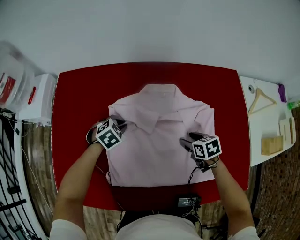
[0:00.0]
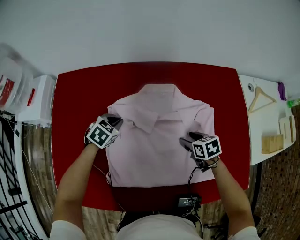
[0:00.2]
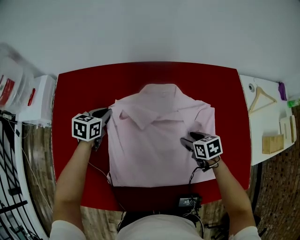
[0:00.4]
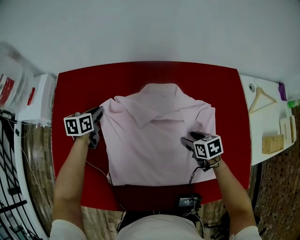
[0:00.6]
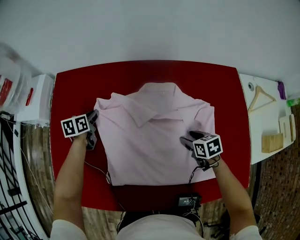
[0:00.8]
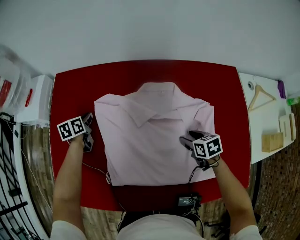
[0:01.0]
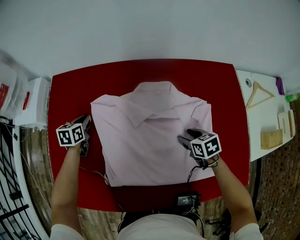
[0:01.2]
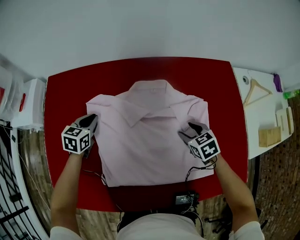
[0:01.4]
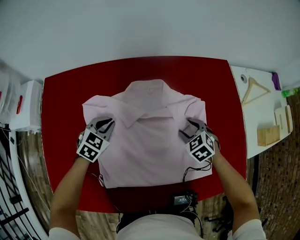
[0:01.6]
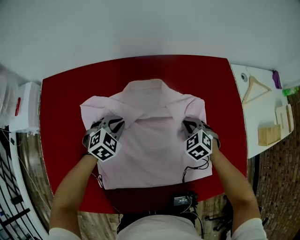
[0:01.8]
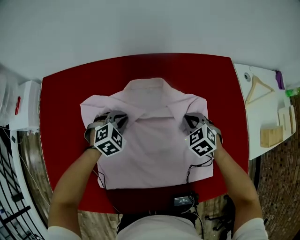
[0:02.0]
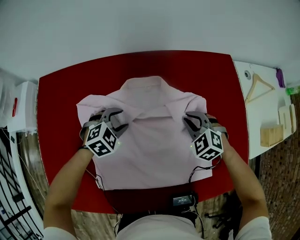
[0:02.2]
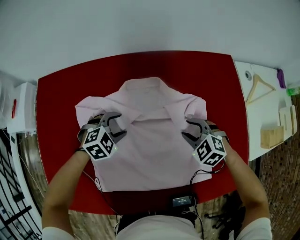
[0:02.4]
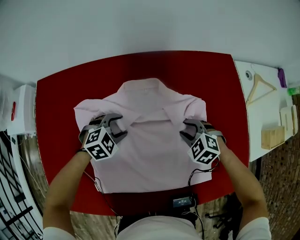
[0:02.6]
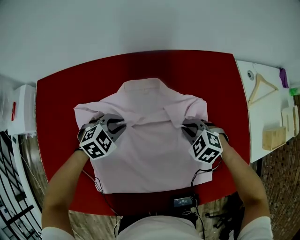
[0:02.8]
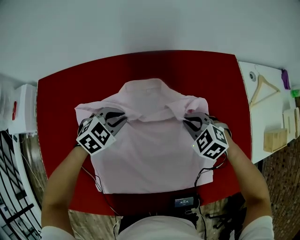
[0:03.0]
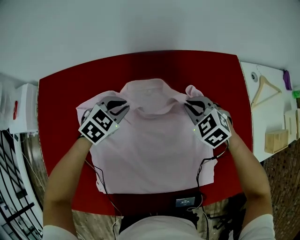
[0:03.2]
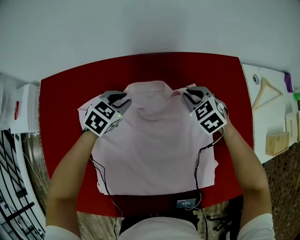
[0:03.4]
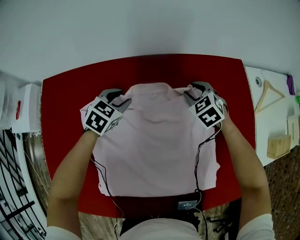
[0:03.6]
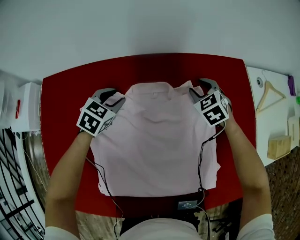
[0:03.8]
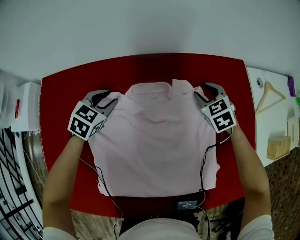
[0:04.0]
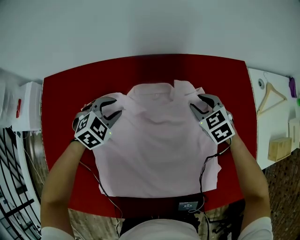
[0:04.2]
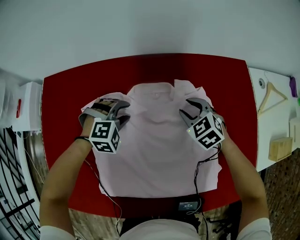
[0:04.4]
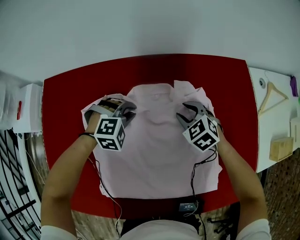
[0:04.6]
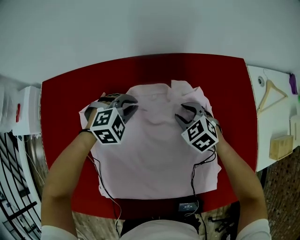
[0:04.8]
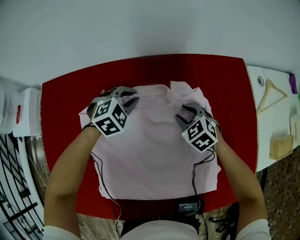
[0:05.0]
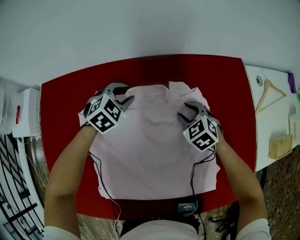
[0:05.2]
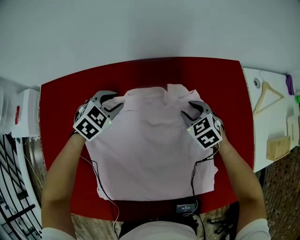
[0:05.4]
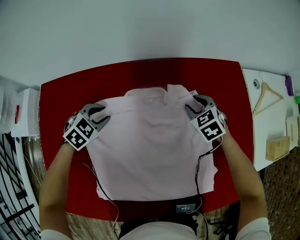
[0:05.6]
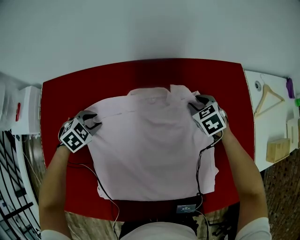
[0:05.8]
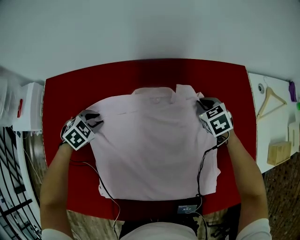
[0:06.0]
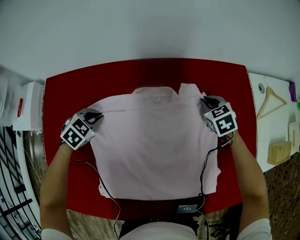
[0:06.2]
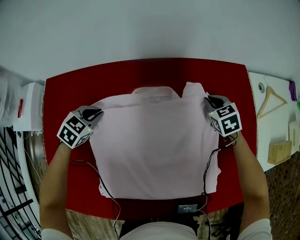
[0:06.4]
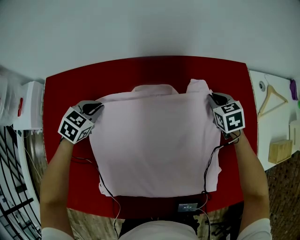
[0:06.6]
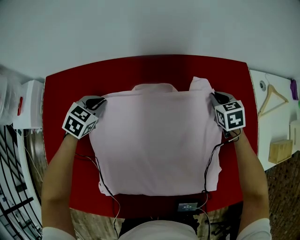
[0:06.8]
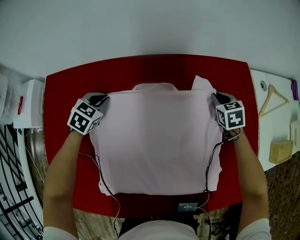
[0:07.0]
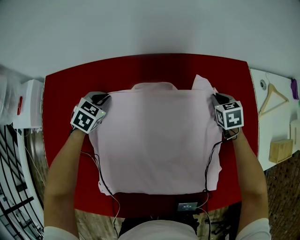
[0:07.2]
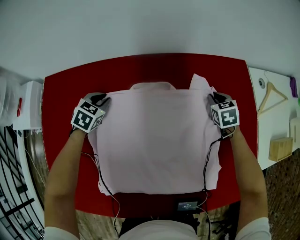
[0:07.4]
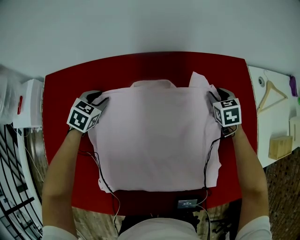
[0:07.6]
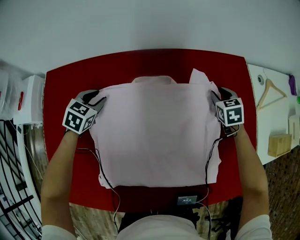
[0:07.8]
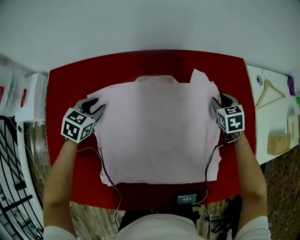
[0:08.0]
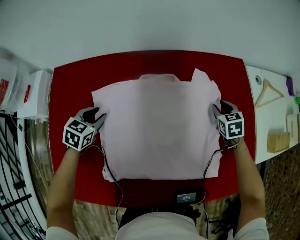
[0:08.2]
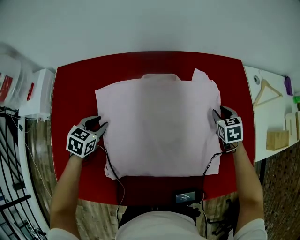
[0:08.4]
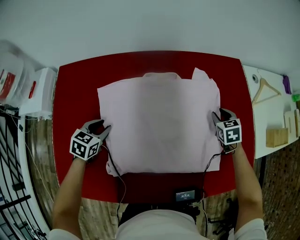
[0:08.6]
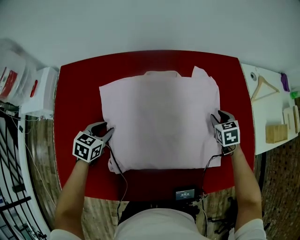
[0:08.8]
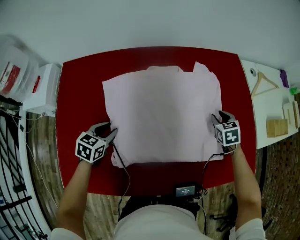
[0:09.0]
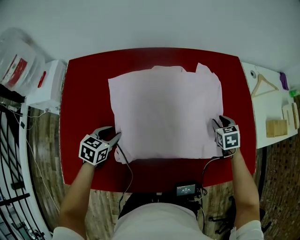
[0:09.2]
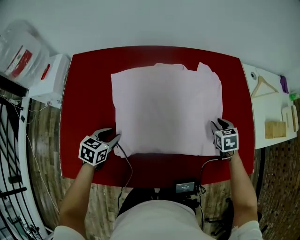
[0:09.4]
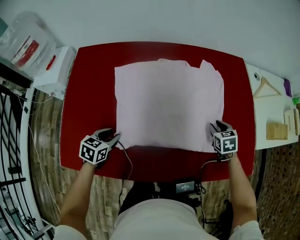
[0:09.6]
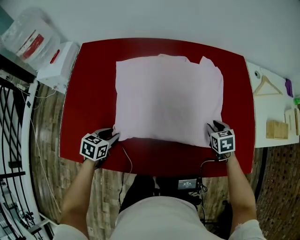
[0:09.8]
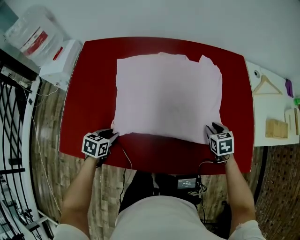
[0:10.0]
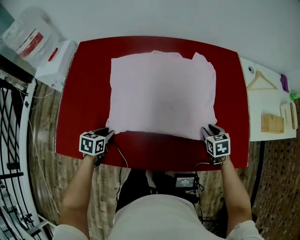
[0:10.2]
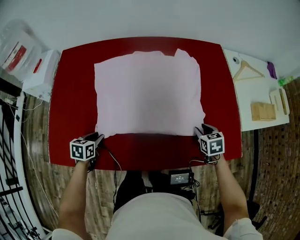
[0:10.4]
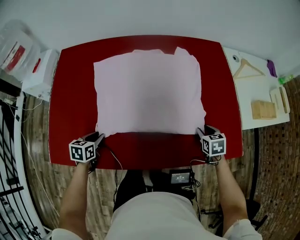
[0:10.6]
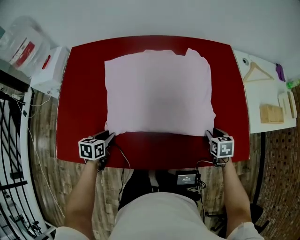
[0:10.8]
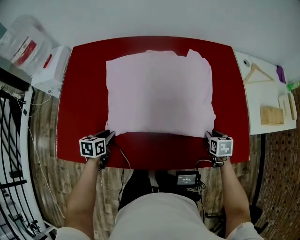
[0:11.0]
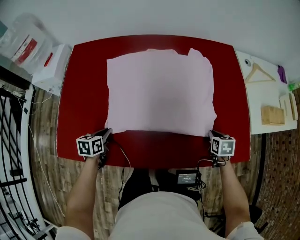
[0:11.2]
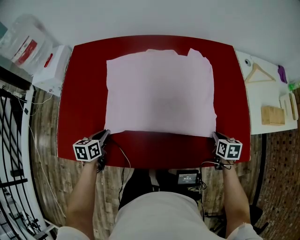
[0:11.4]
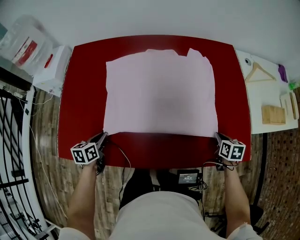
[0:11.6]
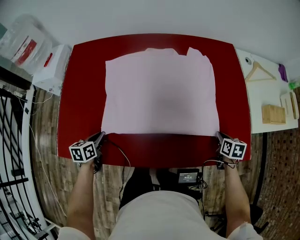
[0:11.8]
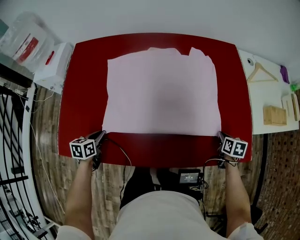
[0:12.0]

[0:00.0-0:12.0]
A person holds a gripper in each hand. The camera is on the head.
0:00.0 to 0:01.6: The right gripper changes its angle by about 40 degrees, while the left gripper travels to the left and back again, some 15 cm each way, and rotates some 20 degrees.
0:01.6 to 0:03.0: The left gripper travels to the right by approximately 5 cm, and opens, then closes again; the right gripper swings forward and backward, roughly 5 cm each way, with 2 reversals, and closes.
0:03.0 to 0:04.4: The left gripper goes forward and returns, about 10 cm each way, swivels roughly 40 degrees, and opens its fingers, while the right gripper is displaced forward by some 5 cm, and opens.
0:04.4 to 0:06.0: The right gripper goes approximately 10 cm to the right and forward, and closes. Meanwhile the left gripper goes roughly 15 cm to the left, turns by approximately 40 degrees, and closes, then opens again.
0:06.0 to 0:07.6: The right gripper heads to the right, covering about 5 cm, and opens. The left gripper goes some 5 cm forward, rotates roughly 20 degrees, and closes, then reopens.
0:07.6 to 0:09.0: The grippers both shift backward by about 20 cm.
0:09.0 to 0:10.4: Both grippers travel together backward, approximately 15 cm. The left gripper turns by approximately 20 degrees.
0:10.4 to 0:12.0: The left gripper closes its fingers. The right gripper moves to the right, about 5 cm, swivels about 20 degrees, and closes up.

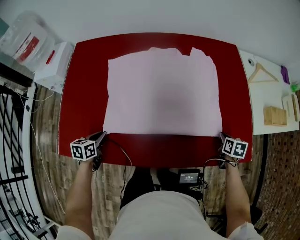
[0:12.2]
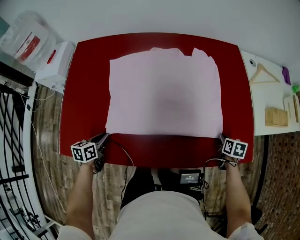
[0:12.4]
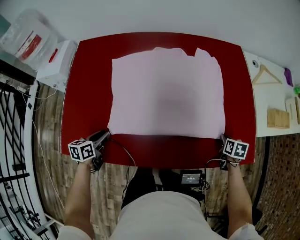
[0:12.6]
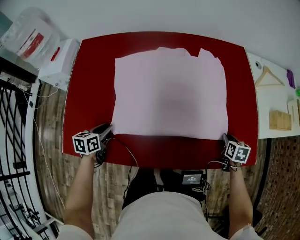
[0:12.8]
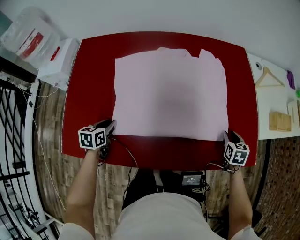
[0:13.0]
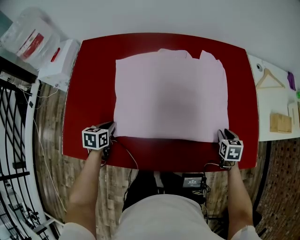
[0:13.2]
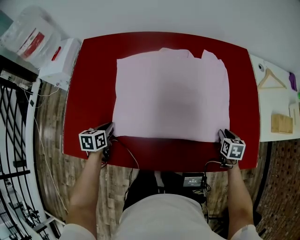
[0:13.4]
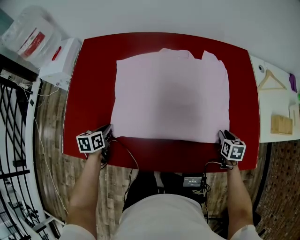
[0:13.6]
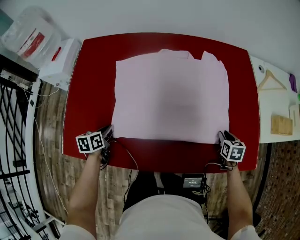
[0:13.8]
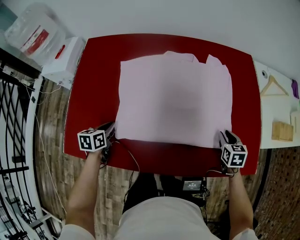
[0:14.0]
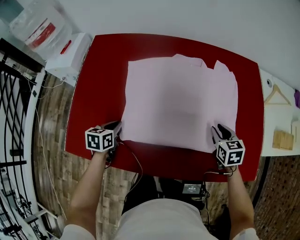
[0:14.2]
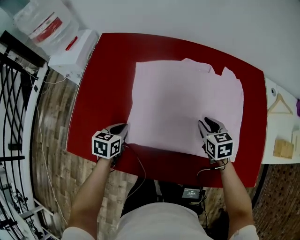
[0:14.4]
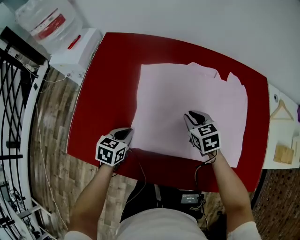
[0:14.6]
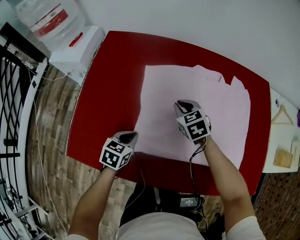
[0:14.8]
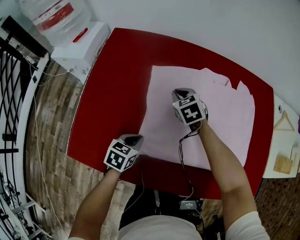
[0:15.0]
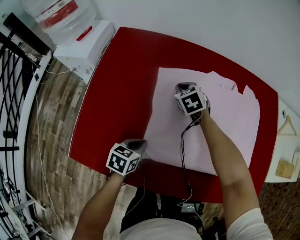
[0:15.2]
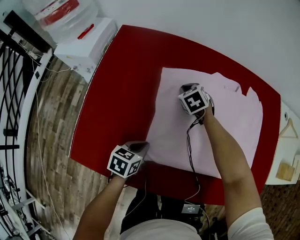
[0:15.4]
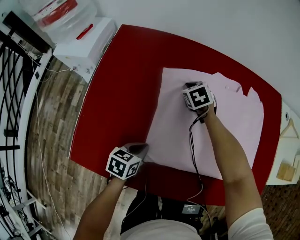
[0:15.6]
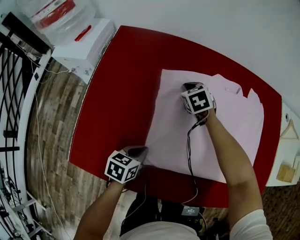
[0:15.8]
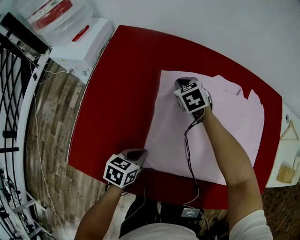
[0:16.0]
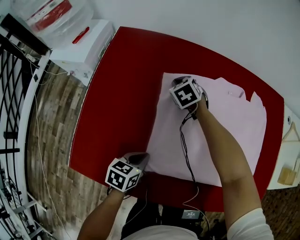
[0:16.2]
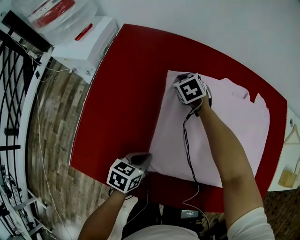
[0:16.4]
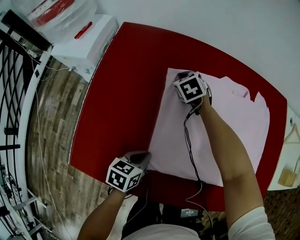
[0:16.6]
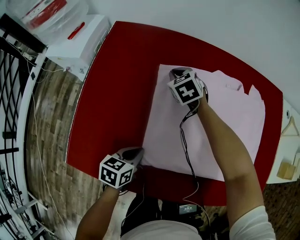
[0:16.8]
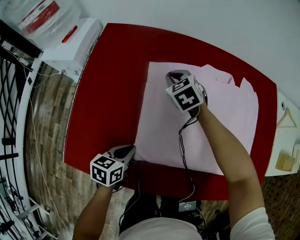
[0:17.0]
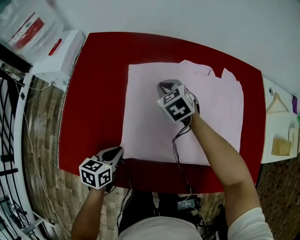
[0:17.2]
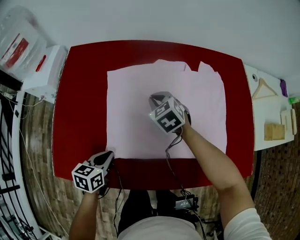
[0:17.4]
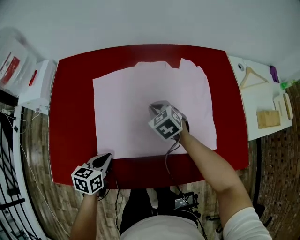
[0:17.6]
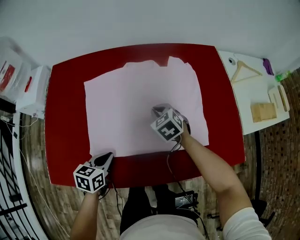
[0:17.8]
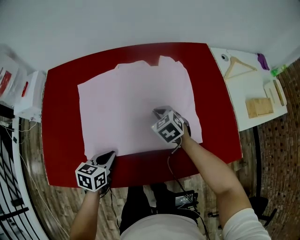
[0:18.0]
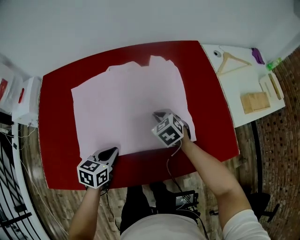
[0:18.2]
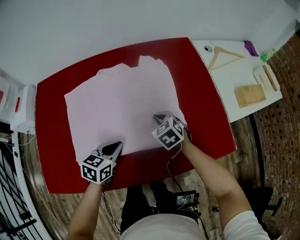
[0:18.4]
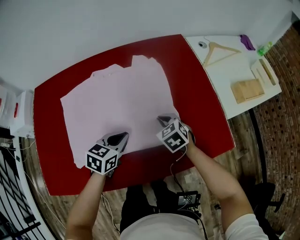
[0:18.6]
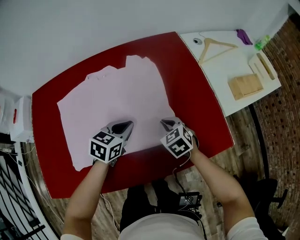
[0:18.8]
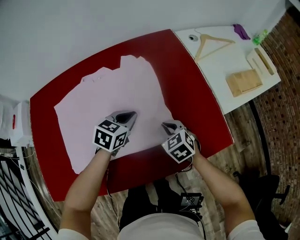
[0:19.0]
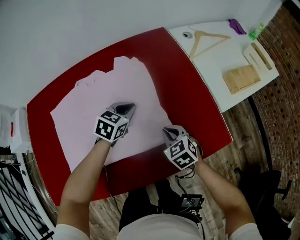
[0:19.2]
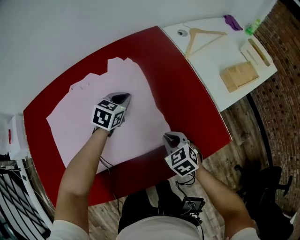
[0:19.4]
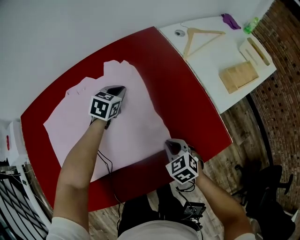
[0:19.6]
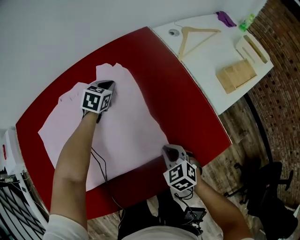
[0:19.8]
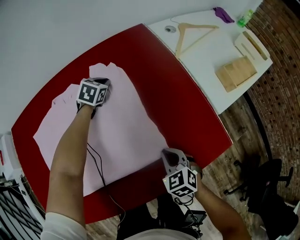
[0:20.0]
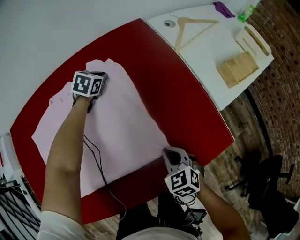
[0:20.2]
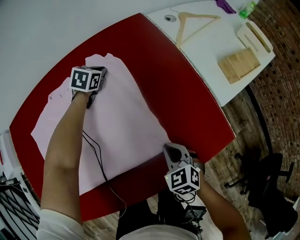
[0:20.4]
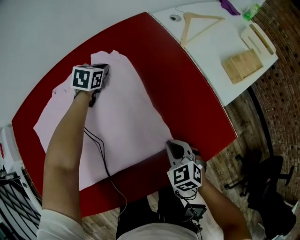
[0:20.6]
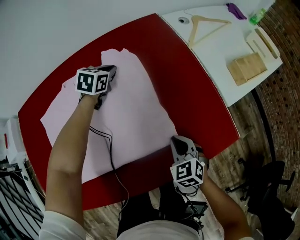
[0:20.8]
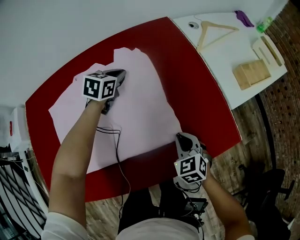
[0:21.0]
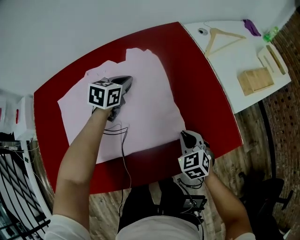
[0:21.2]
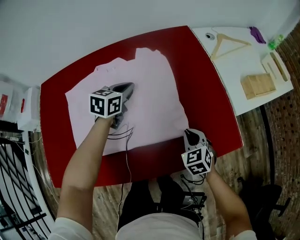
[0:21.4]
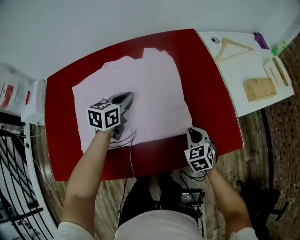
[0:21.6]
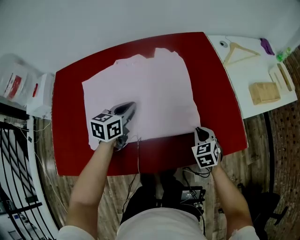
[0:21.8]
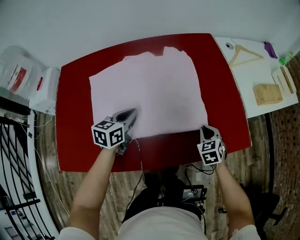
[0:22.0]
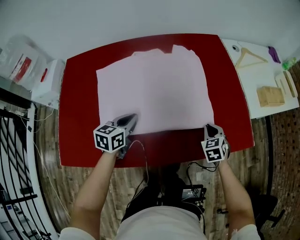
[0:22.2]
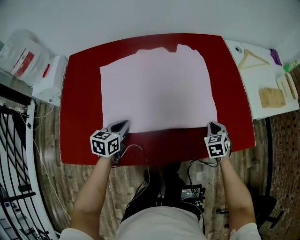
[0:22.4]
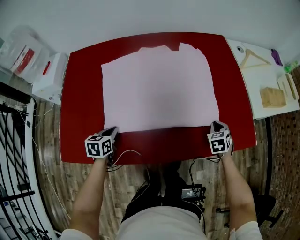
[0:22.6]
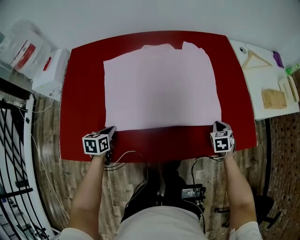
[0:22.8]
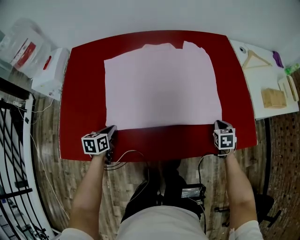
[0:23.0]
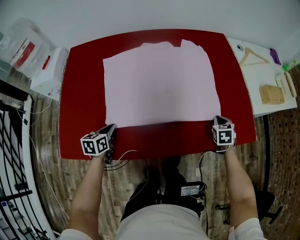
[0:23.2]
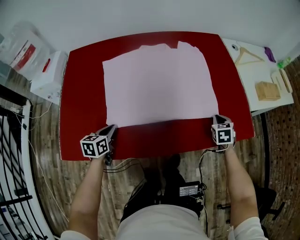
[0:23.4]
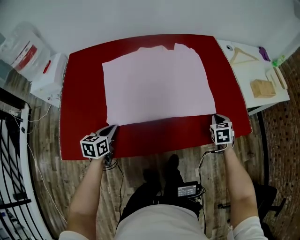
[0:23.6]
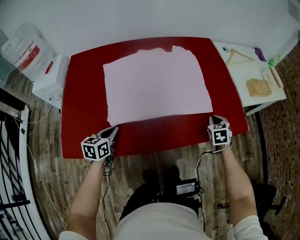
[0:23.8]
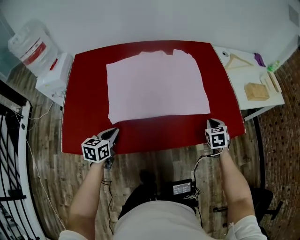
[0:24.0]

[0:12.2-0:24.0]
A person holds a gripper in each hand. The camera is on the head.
0:12.2 to 0:13.6: The right gripper ends up approximately 5 cm from where it was, and opens its fingers.
0:13.6 to 0:15.2: The right gripper heads to the left and forward, covering approximately 50 cm, twists roughly 40 degrees counterclockwise, seen from behind, and closes up.
0:15.2 to 0:16.6: The right gripper is displaced forward and to the left by roughly 10 cm.
0:16.6 to 0:18.2: The right gripper heads to the right and backward, covering about 40 cm. The left gripper shifts approximately 20 cm to the right and upward, and rotates roughly 20 degrees.
0:18.2 to 0:19.6: The left gripper goes roughly 35 cm forward and to the right, and rotates about 30 degrees, while the right gripper heads to the right and backward, covering about 20 cm.
0:19.6 to 0:21.0: The left gripper goes forward and returns, roughly 10 cm each way.
0:21.0 to 0:22.6: The left gripper travels backward and to the left by about 50 cm, and turns by roughly 40 degrees.
0:22.6 to 0:24.0: The grippers both shift upward and backward by about 10 cm.
